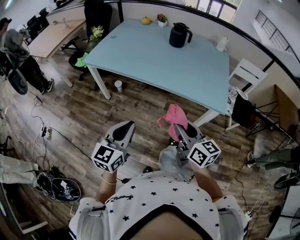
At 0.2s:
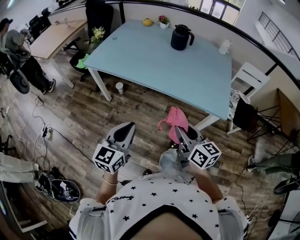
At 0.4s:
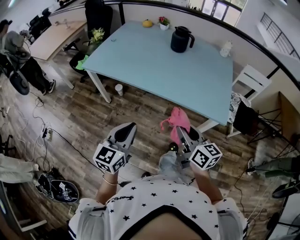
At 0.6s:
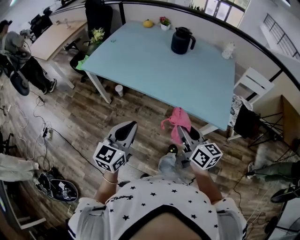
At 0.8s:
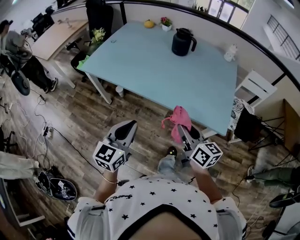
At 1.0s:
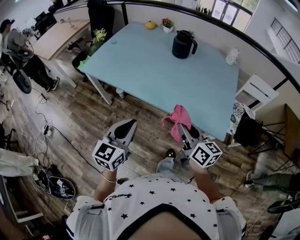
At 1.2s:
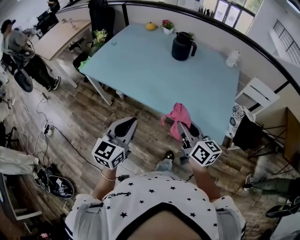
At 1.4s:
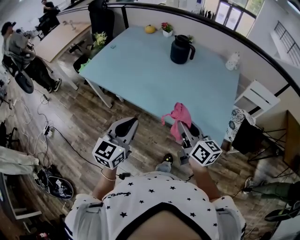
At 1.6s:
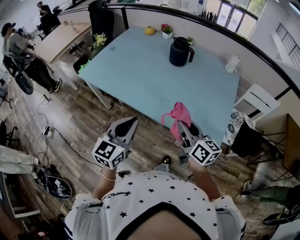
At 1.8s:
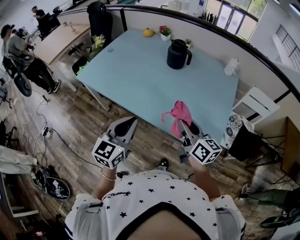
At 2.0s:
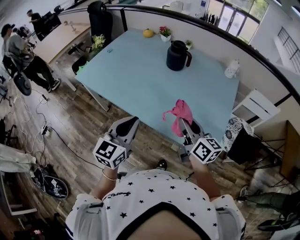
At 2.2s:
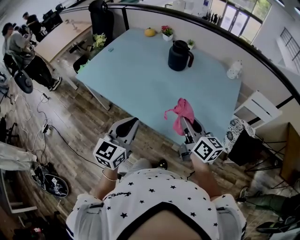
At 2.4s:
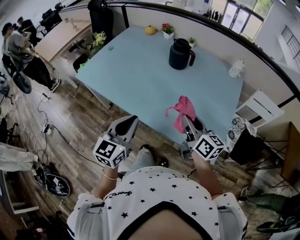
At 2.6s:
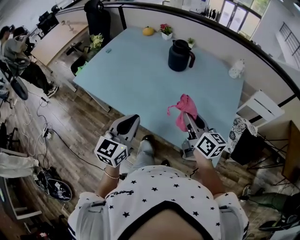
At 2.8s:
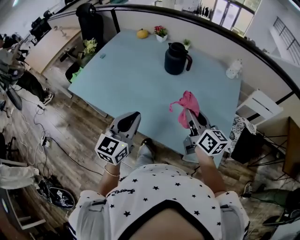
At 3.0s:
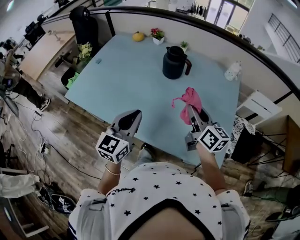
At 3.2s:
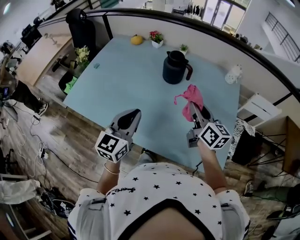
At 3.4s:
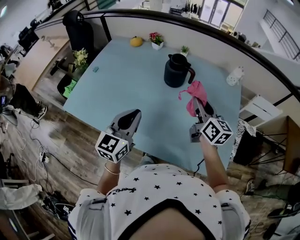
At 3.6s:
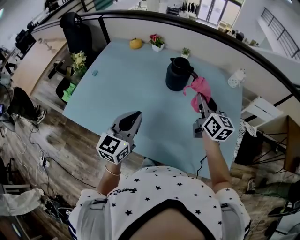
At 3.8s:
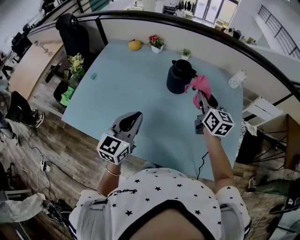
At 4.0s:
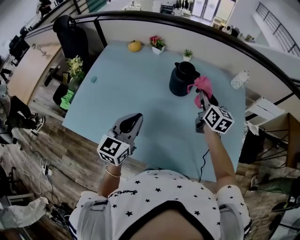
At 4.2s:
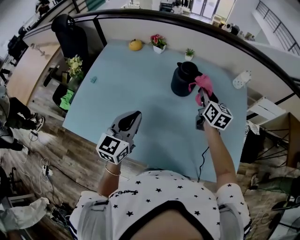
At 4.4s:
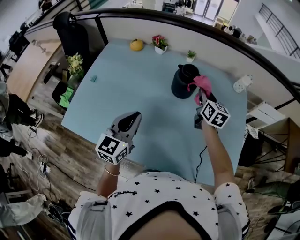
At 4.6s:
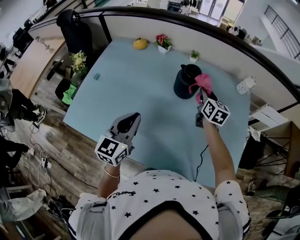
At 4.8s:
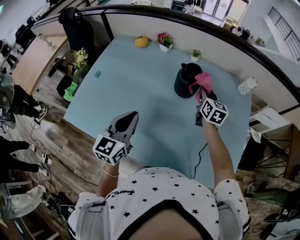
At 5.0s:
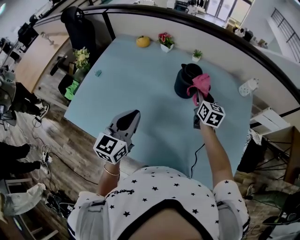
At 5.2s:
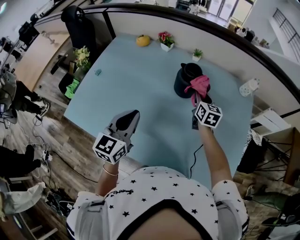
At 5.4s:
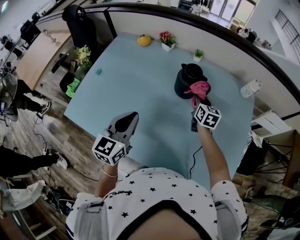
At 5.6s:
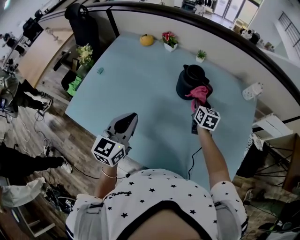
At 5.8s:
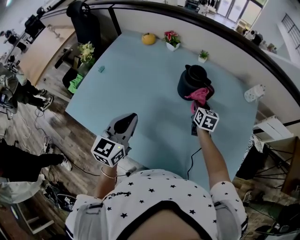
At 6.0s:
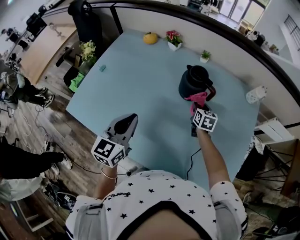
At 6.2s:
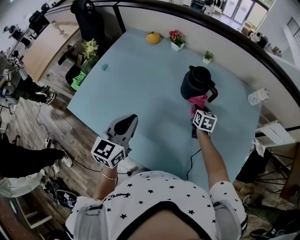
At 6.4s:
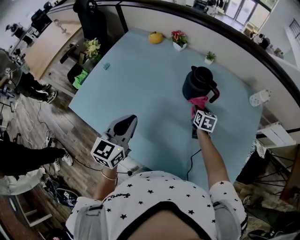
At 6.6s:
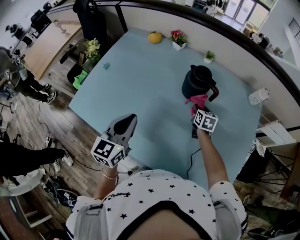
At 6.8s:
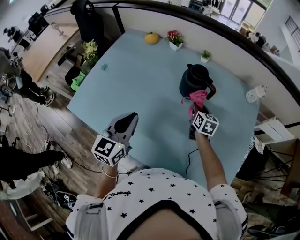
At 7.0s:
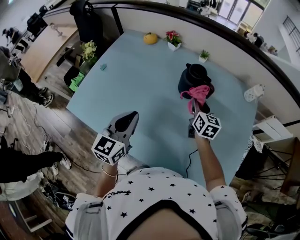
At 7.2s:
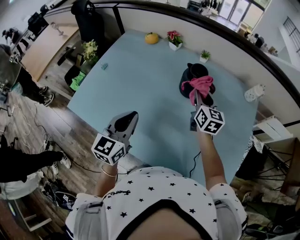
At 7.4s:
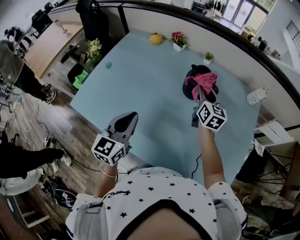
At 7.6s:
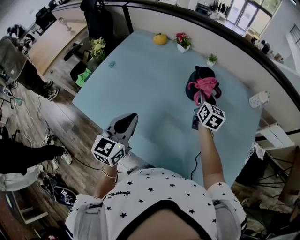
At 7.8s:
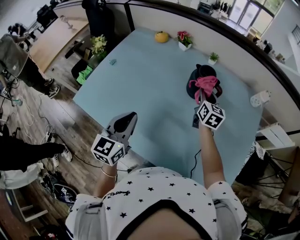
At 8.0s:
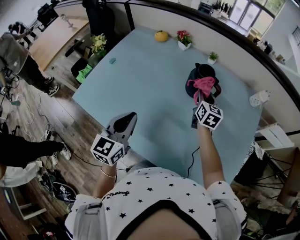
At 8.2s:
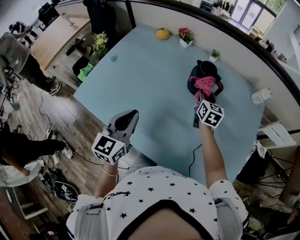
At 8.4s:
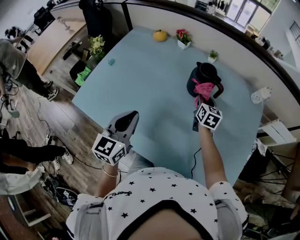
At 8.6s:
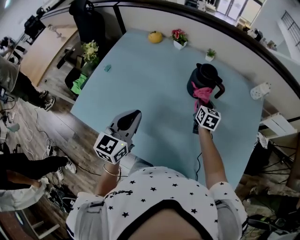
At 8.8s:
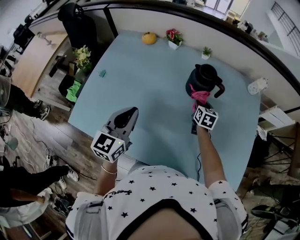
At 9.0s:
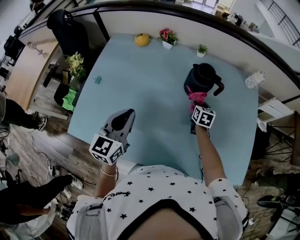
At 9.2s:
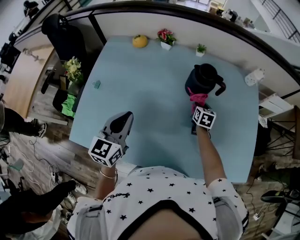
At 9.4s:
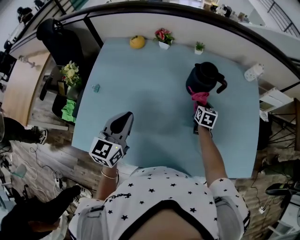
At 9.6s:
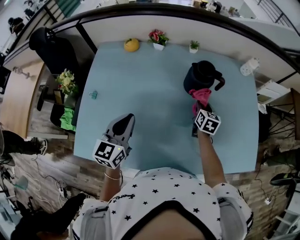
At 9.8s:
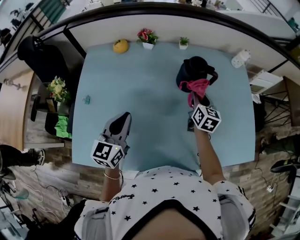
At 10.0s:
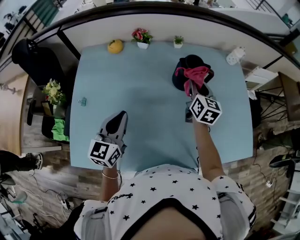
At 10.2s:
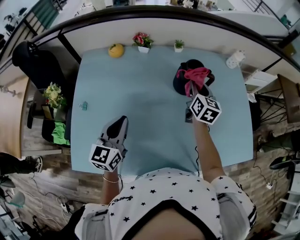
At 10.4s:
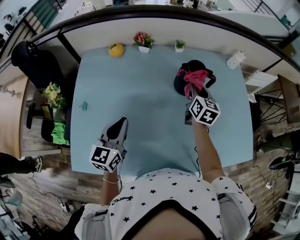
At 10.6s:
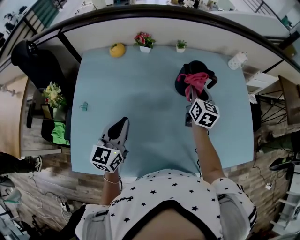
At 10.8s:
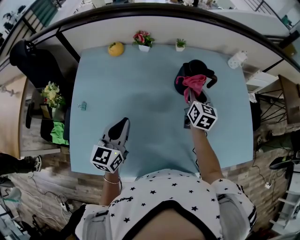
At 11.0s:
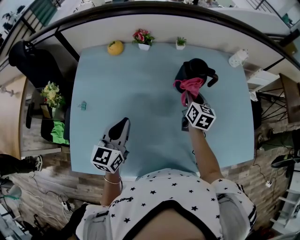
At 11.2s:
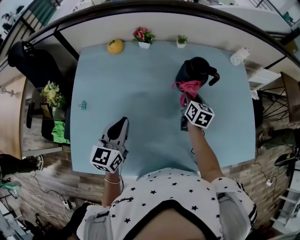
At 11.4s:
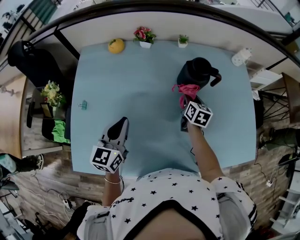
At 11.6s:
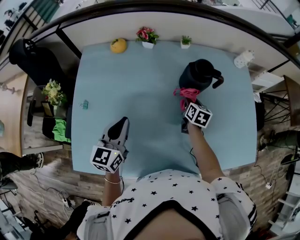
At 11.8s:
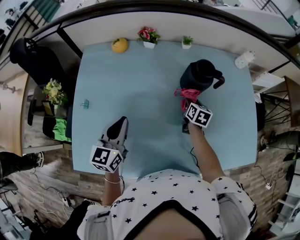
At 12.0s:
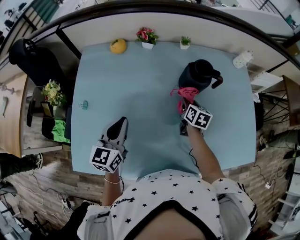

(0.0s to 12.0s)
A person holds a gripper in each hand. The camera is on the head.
0.0s - 1.6s: The two grippers go some 25 cm forward and to the right.
1.6s - 3.0s: Both grippers move forward, approximately 20 cm.
3.0s - 4.4s: The right gripper heads forward, covering roughly 25 cm, and turns by some 30 degrees; the left gripper travels forward and to the left by roughly 20 cm.
4.4s - 6.0s: The right gripper moves downward, approximately 15 cm, and swivels approximately 20 degrees.
6.0s - 7.6s: The right gripper goes about 10 cm upward.
7.6s - 9.0s: The left gripper shifts about 10 cm forward and to the left. The right gripper is displaced downward by approximately 15 cm, and rotates some 20 degrees.
9.0s - 10.4s: The left gripper travels to the left by roughly 5 cm. Meanwhile the right gripper moves upward, about 15 cm, and swivels roughly 30 degrees.
10.4s - 12.0s: The right gripper moves downward, roughly 15 cm, and turns by roughly 20 degrees.

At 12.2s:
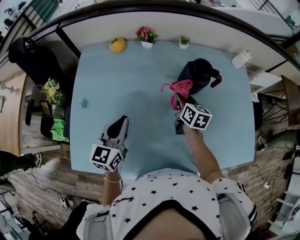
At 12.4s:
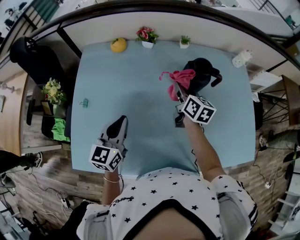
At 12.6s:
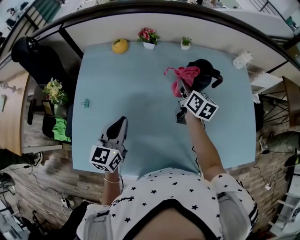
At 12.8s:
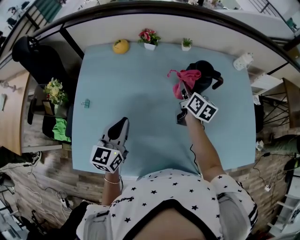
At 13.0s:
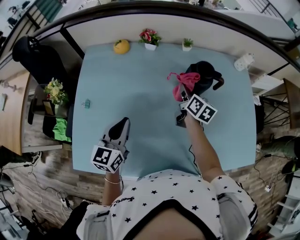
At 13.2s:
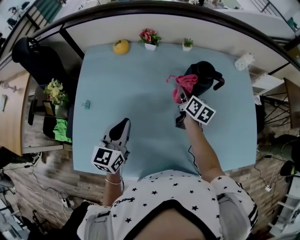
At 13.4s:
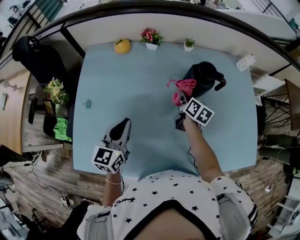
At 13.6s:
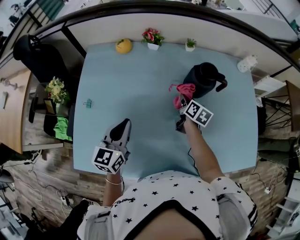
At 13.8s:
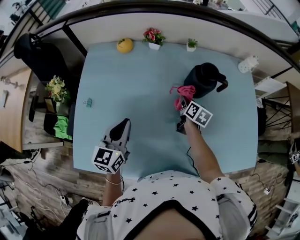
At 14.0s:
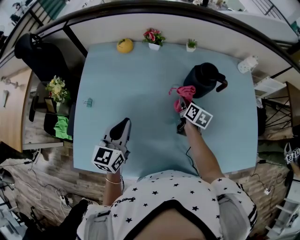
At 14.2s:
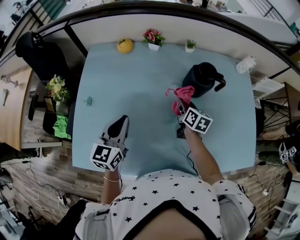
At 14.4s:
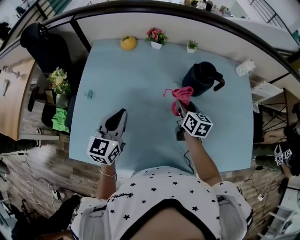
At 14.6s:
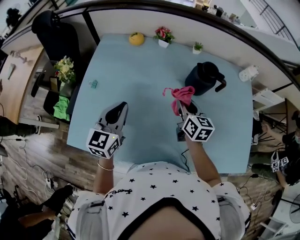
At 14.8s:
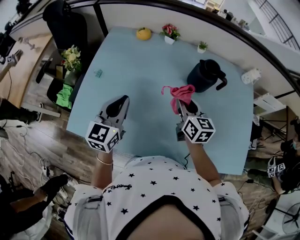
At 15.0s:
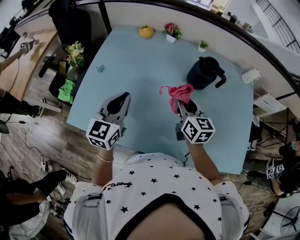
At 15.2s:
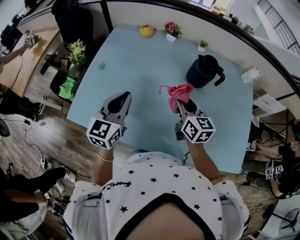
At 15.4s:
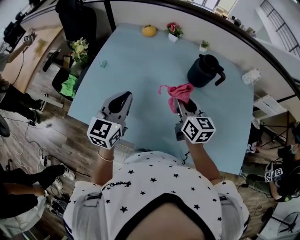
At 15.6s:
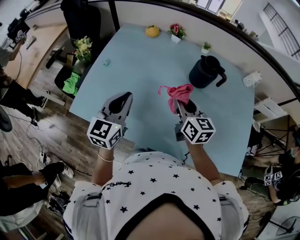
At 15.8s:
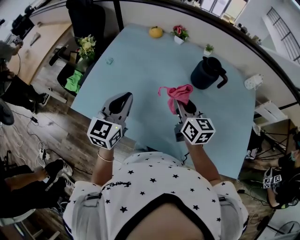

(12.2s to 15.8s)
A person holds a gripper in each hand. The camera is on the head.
12.2s - 14.0s: The right gripper goes some 5 cm downward.
14.0s - 15.8s: The right gripper goes approximately 25 cm upward, backward and to the left, and swivels roughly 50 degrees, while the left gripper travels backward and upward by about 15 cm.

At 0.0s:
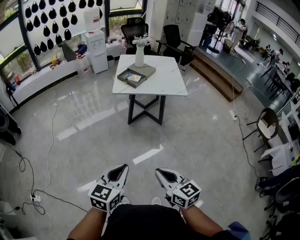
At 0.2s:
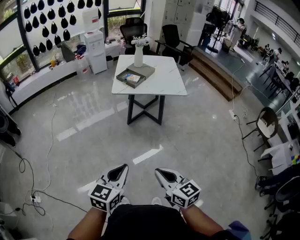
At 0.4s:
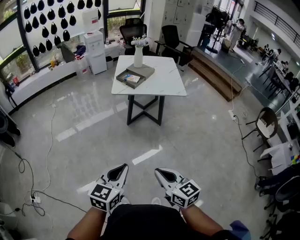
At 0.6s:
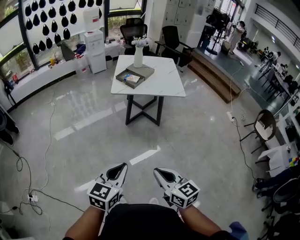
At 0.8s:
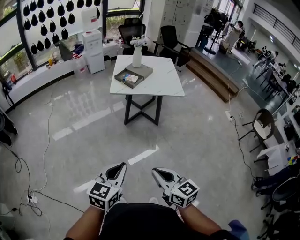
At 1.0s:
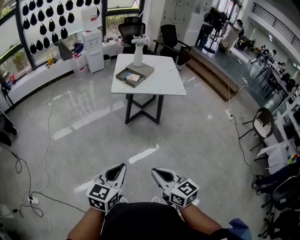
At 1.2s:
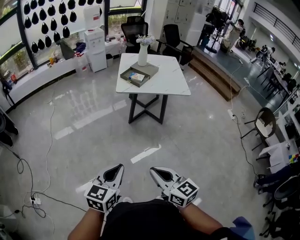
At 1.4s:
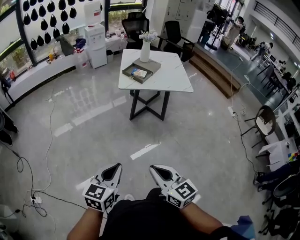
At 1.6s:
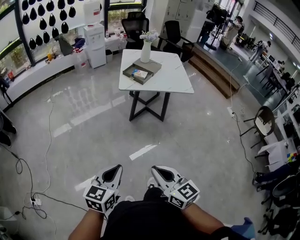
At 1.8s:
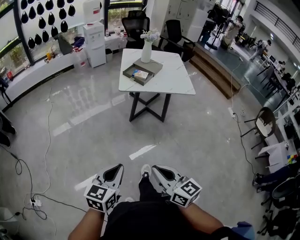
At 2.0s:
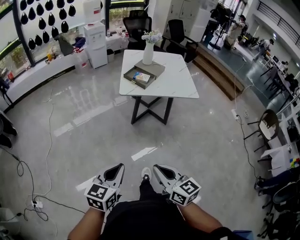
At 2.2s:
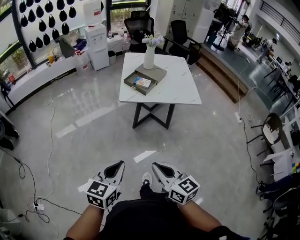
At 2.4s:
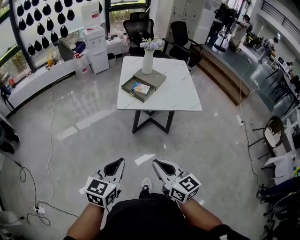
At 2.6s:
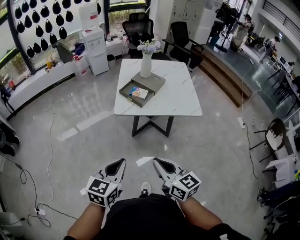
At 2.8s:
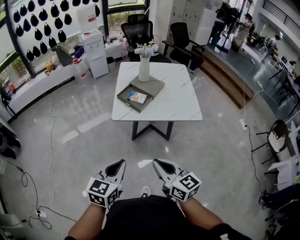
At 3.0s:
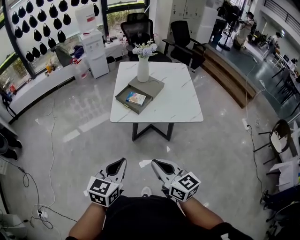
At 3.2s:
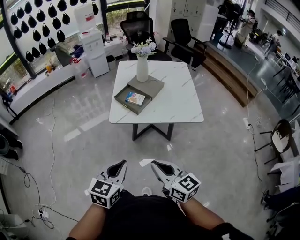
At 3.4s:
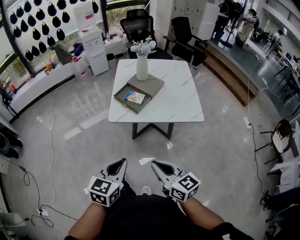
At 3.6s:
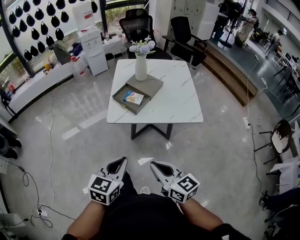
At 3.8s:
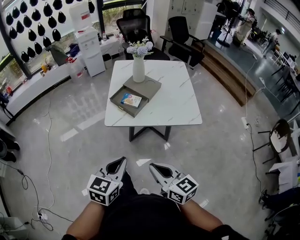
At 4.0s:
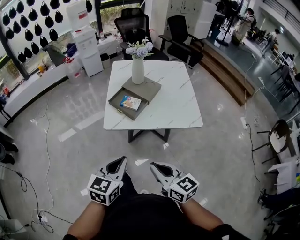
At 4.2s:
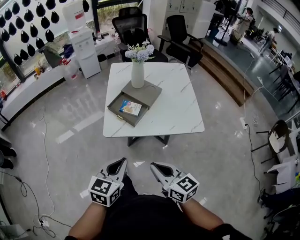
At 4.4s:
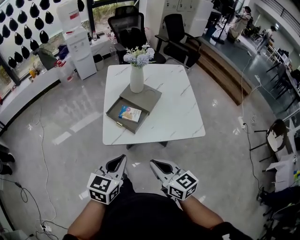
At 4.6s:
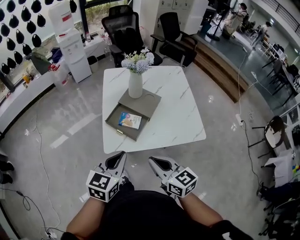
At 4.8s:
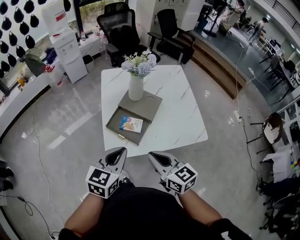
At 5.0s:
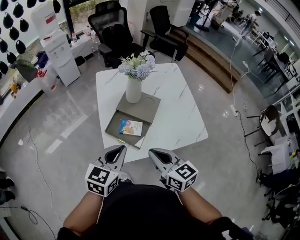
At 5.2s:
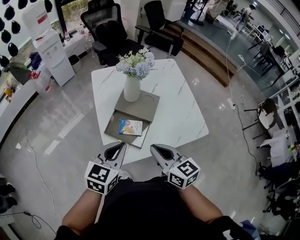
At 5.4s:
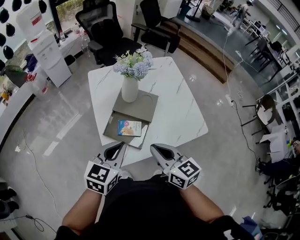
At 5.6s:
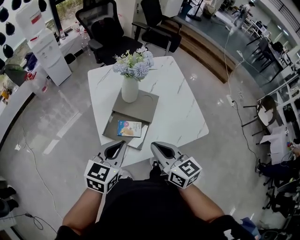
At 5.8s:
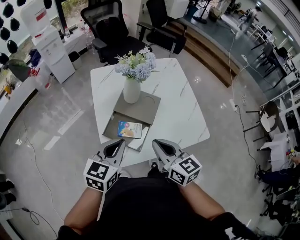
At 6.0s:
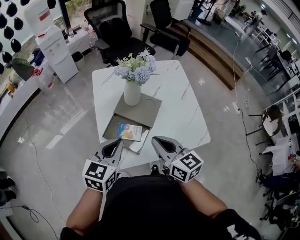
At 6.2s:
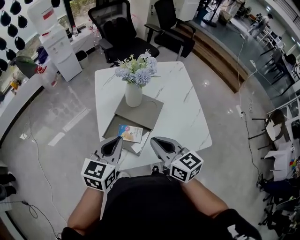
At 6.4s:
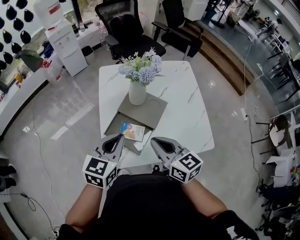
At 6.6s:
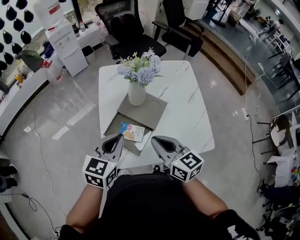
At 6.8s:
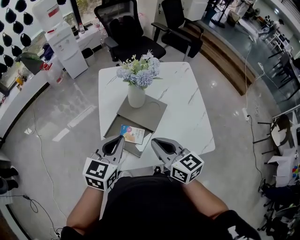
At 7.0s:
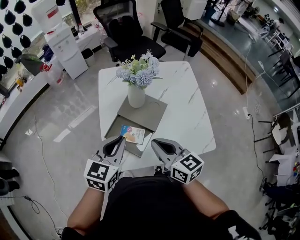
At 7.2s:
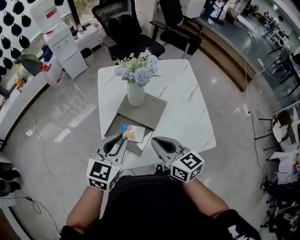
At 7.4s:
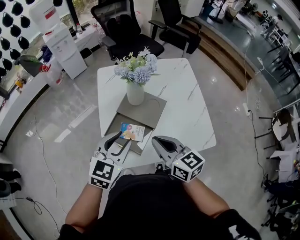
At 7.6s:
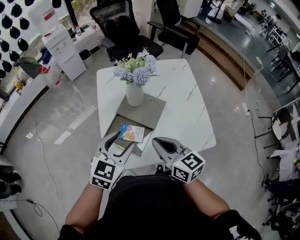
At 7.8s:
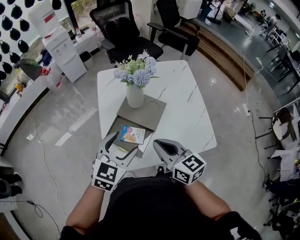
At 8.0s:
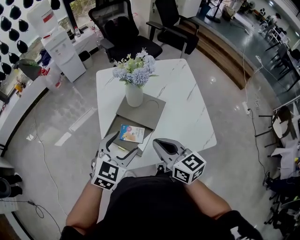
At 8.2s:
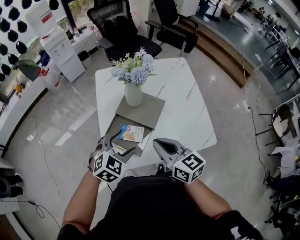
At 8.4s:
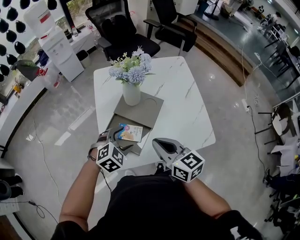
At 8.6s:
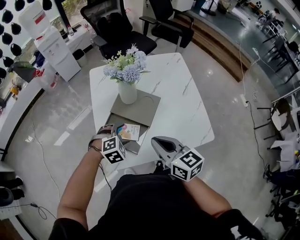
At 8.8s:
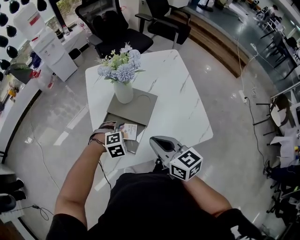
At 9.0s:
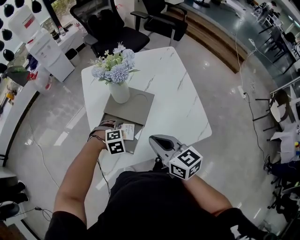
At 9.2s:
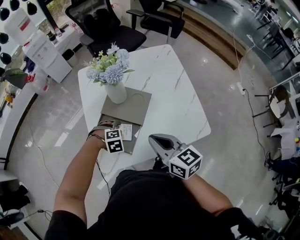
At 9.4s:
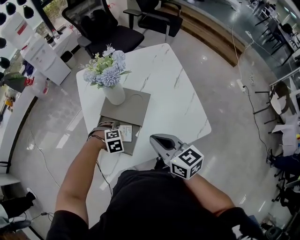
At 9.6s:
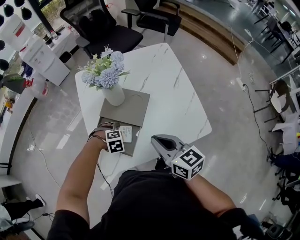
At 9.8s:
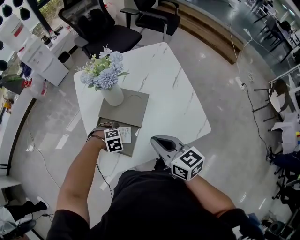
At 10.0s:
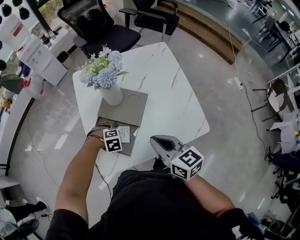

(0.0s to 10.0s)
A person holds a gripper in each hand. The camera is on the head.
0.0s - 1.4s: Both grippers move to the left, some 10 cm.
1.4s - 2.8s: Both grippers travel together forward, roughly 35 cm.
2.8s - 4.2s: Both grippers move forward, about 15 cm.
4.2s - 5.8s: The grippers both shift forward by roughly 30 cm.
5.8s - 7.2s: The grippers move only a little.
7.2s - 8.6s: The left gripper shifts approximately 15 cm downward, points its fingers approximately 40 degrees further downward, and opens.
8.6s - 10.0s: The left gripper shifts approximately 10 cm downward, and rotates approximately 30 degrees, while the right gripper changes place by roughly 5 cm.
